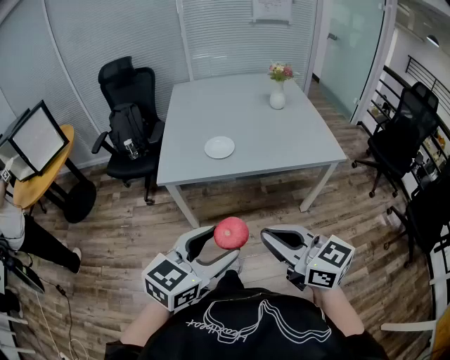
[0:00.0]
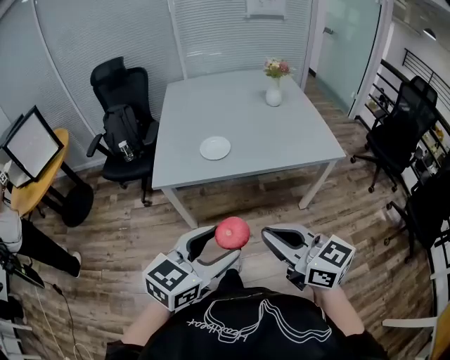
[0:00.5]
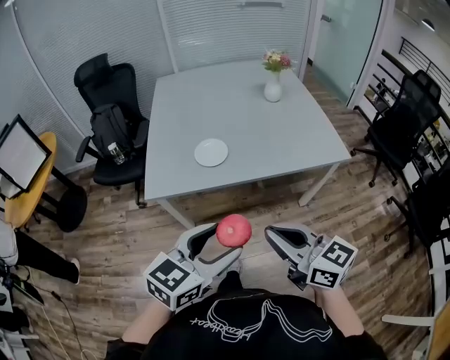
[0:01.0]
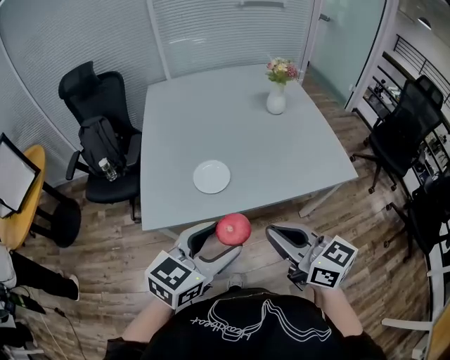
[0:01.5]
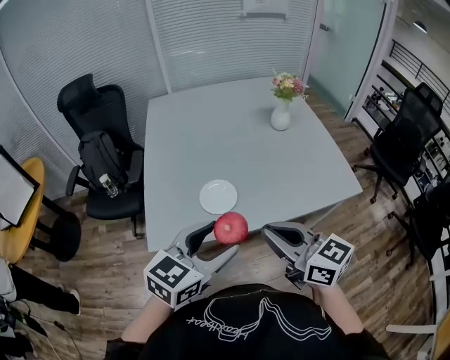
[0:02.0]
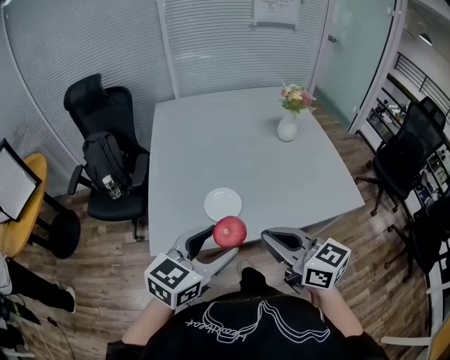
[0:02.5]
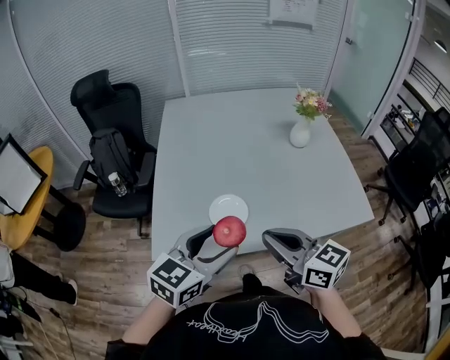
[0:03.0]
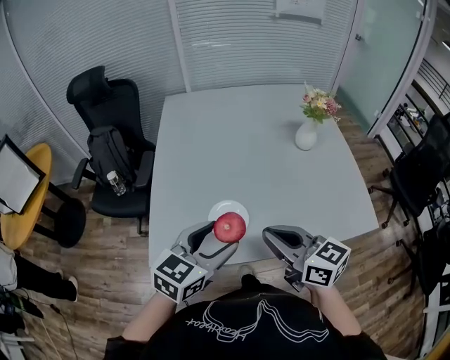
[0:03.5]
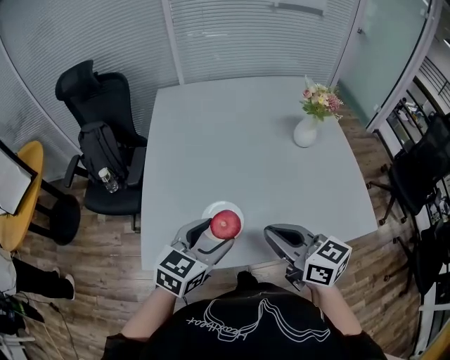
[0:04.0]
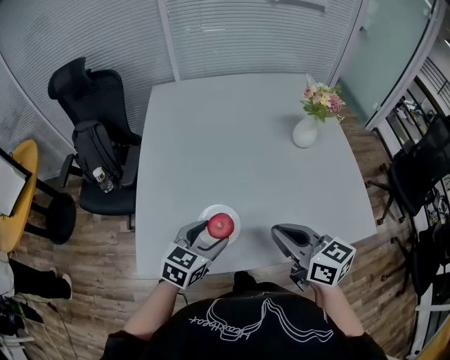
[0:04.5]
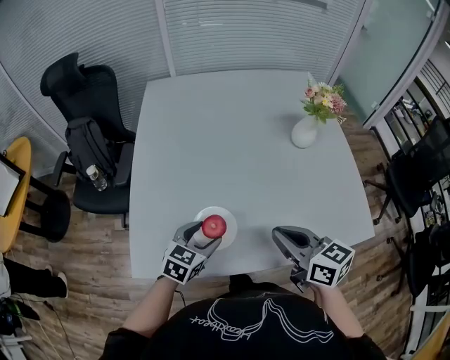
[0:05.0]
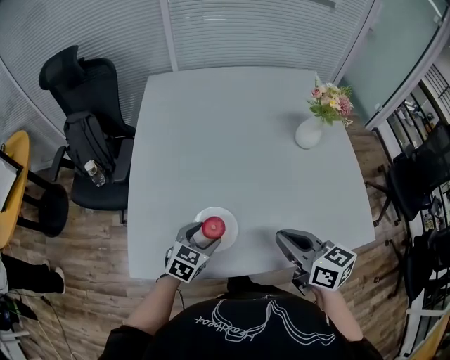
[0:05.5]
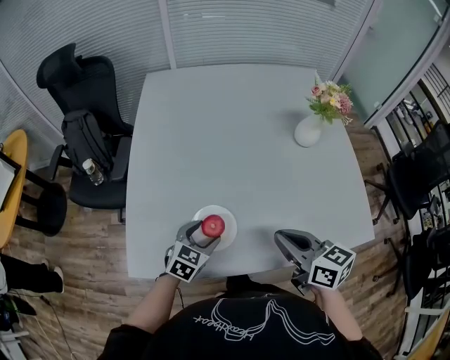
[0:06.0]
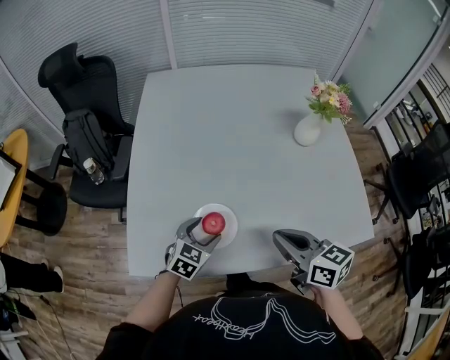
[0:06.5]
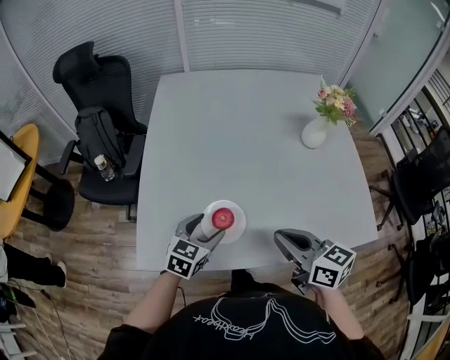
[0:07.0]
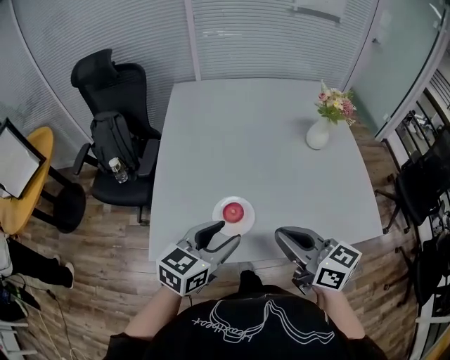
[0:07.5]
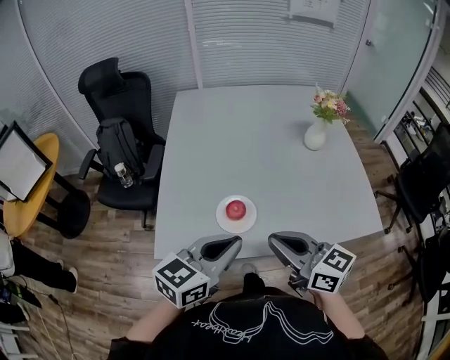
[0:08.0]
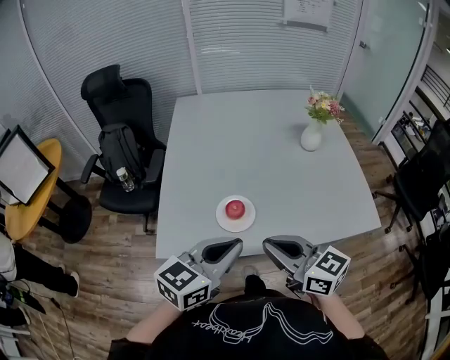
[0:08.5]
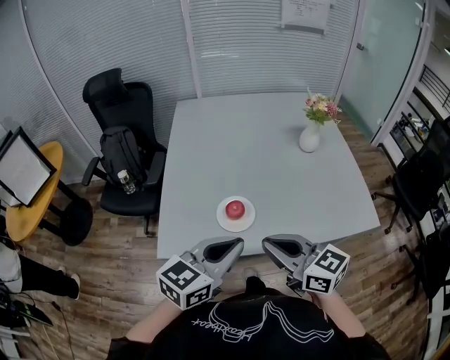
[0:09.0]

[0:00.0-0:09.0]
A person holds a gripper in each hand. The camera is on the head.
0:00.0 to 0:02.0: Both grippers travel together forward, approximately 35 cm.
0:02.0 to 0:04.5: The left gripper goes some 25 cm forward and downward. The right gripper travels forward by some 20 cm.
0:07.0 to 0:09.0: The left gripper travels upward and backward by approximately 25 cm, rotates roughly 20 degrees, and closes; the right gripper travels backward, upward and to the left by approximately 15 cm.

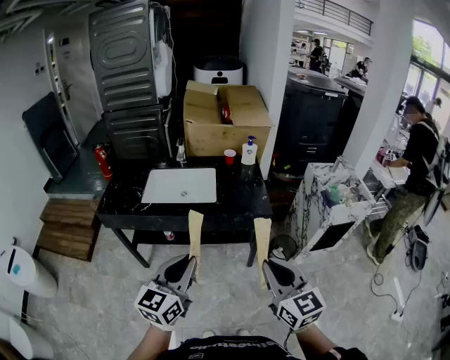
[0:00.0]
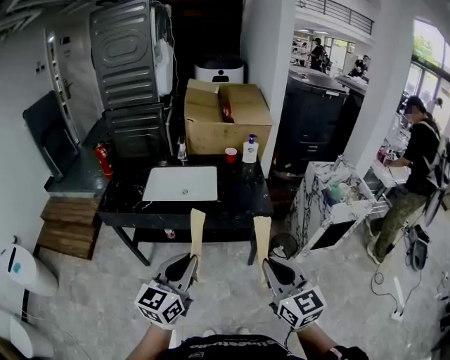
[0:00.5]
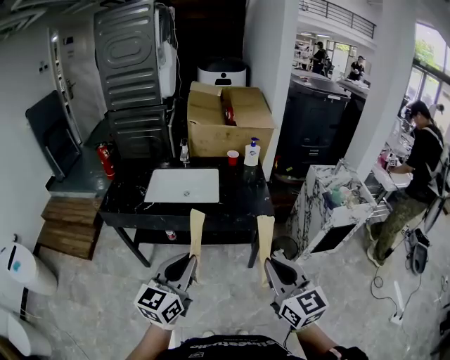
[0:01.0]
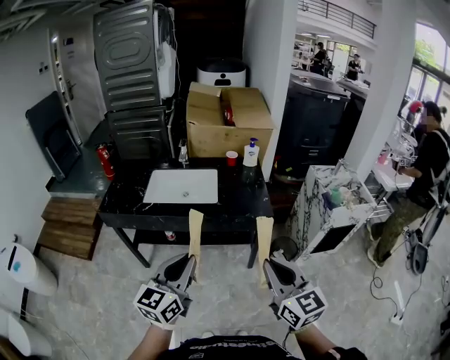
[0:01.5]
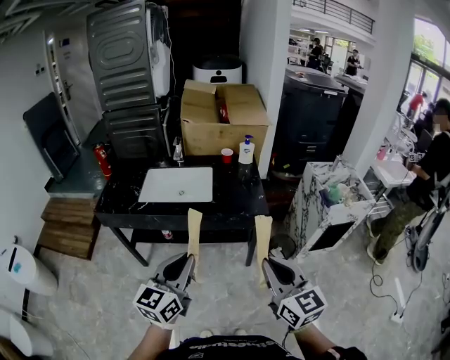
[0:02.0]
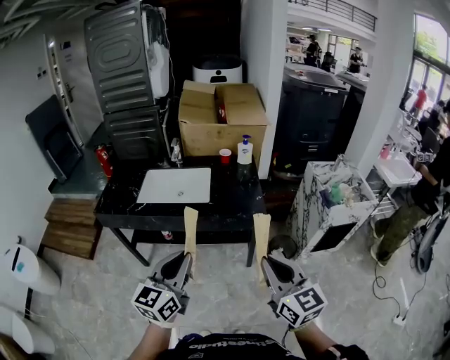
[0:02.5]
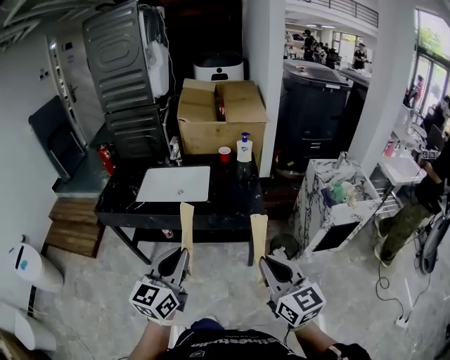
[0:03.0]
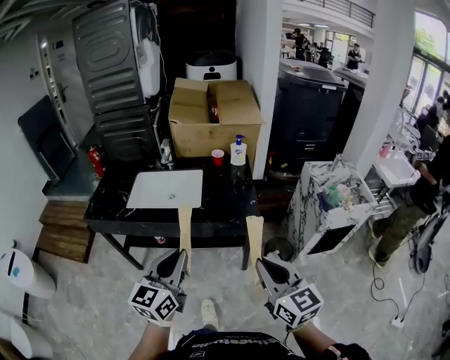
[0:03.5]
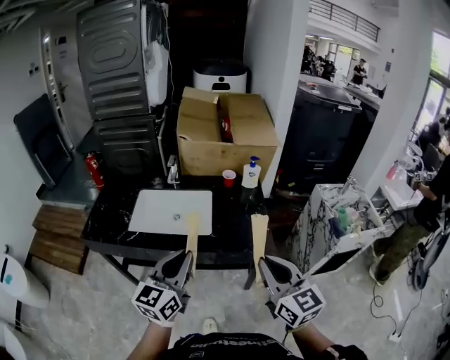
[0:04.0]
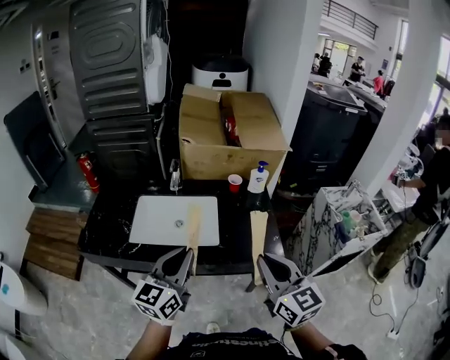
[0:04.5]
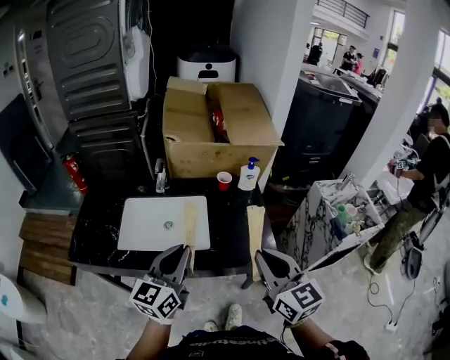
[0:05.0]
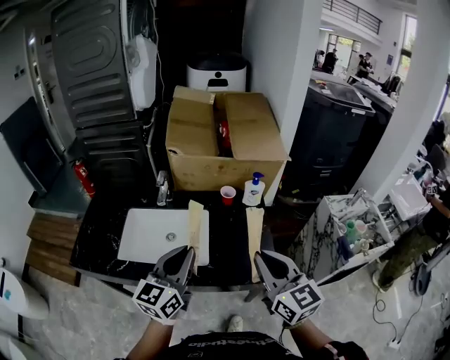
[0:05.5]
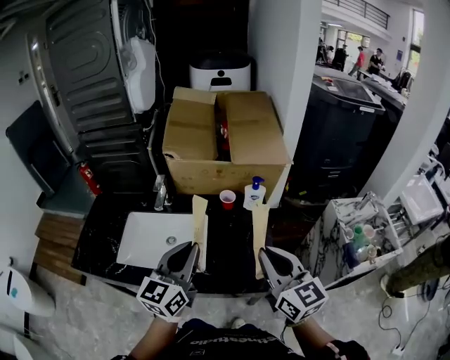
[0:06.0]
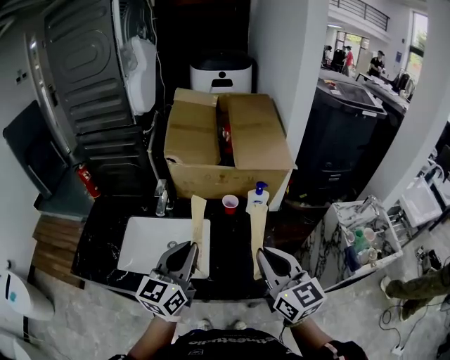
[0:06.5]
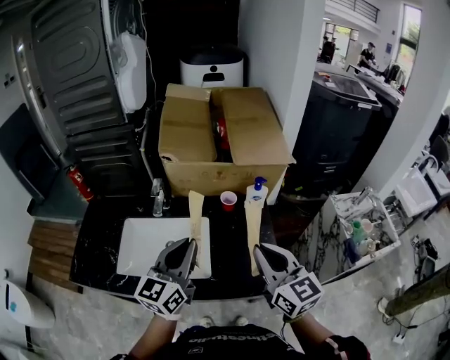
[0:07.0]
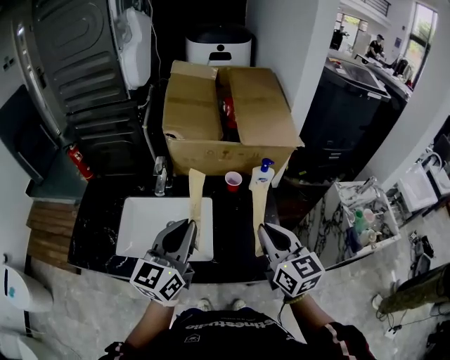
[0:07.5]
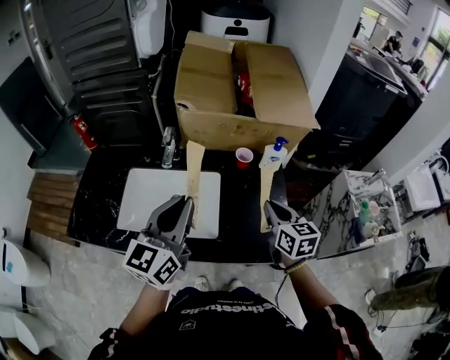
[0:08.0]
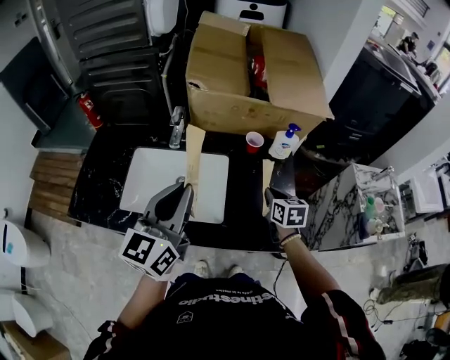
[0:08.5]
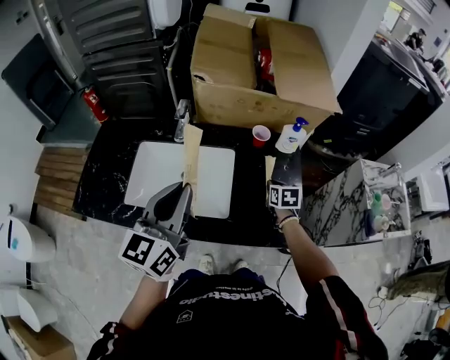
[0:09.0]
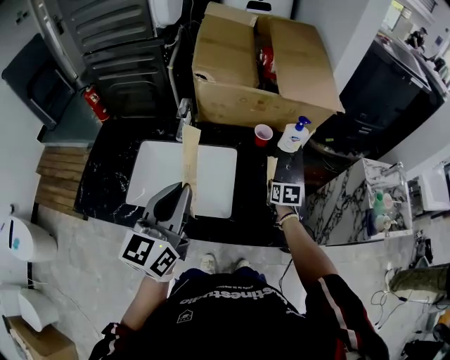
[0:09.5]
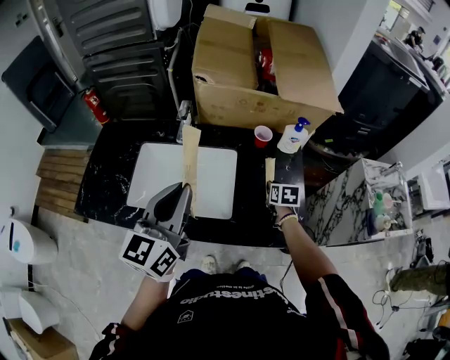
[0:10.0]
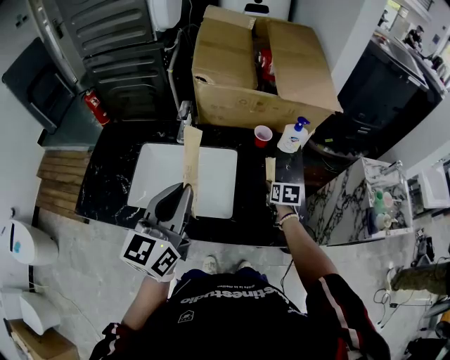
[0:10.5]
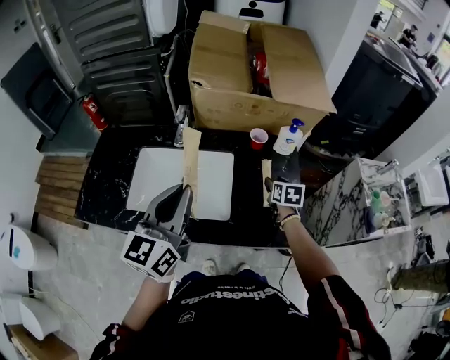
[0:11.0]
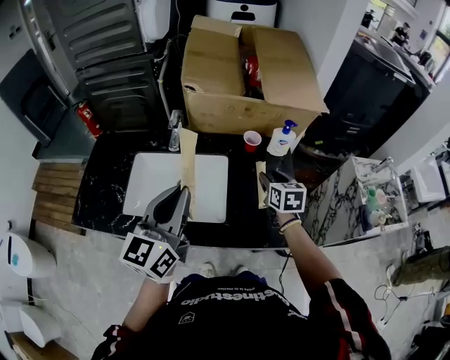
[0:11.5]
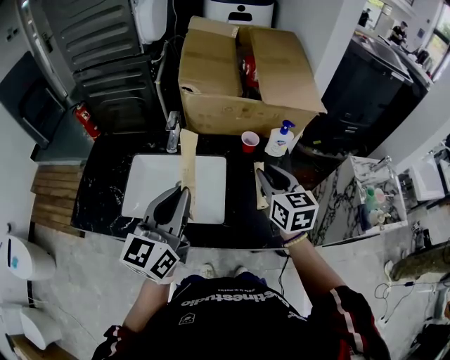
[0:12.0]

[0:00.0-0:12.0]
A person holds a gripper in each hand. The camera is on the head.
0:00.0 to 0:02.0: The grippers make only small movements.
0:02.0 to 0:04.0: Both grippers move forward, roughly 20 cm.
0:04.0 to 0:06.0: The grippers both shift forward by roughly 25 cm.
0:06.0 to 0:08.0: The right gripper heads downward and forward, covering about 20 cm, and changes its angle by roughly 20 degrees, while the left gripper is displaced to the left by some 10 cm.
0:08.0 to 0:10.0: The right gripper heads downward and forward, covering about 20 cm, and changes its angle by approximately 30 degrees.
0:10.0 to 0:12.0: The right gripper goes roughly 25 cm upward, and angles its fingers upward, by roughly 30 degrees.

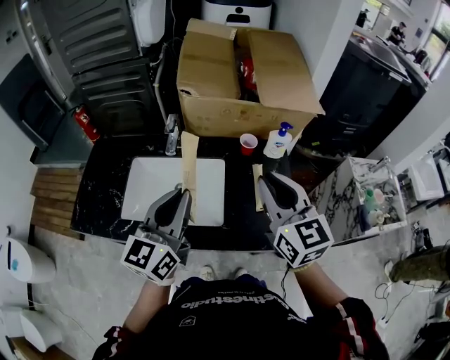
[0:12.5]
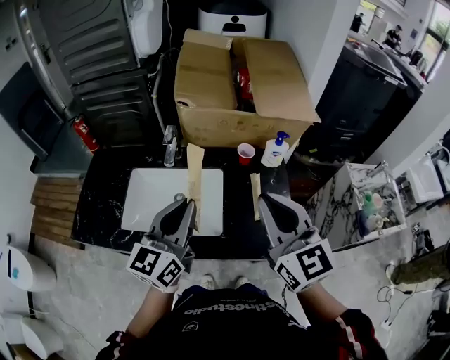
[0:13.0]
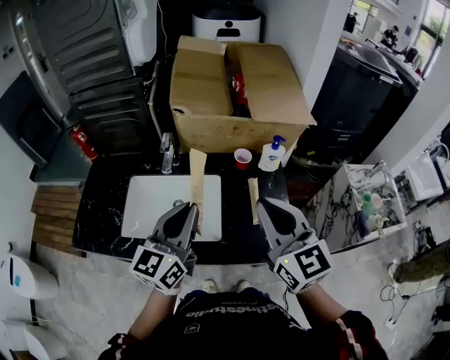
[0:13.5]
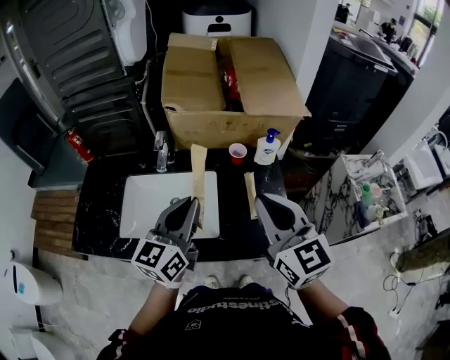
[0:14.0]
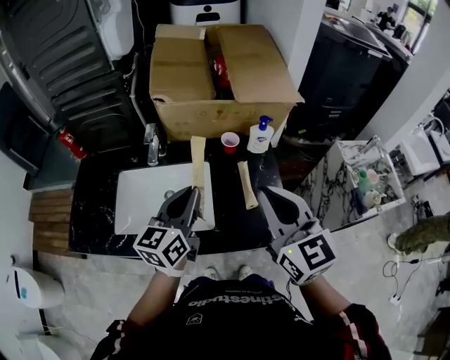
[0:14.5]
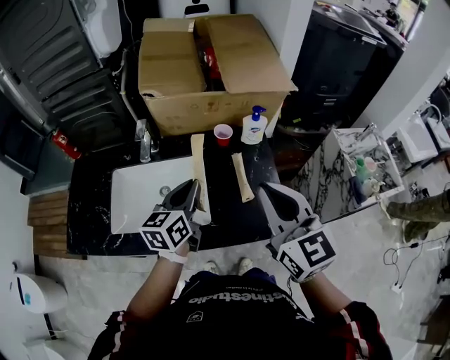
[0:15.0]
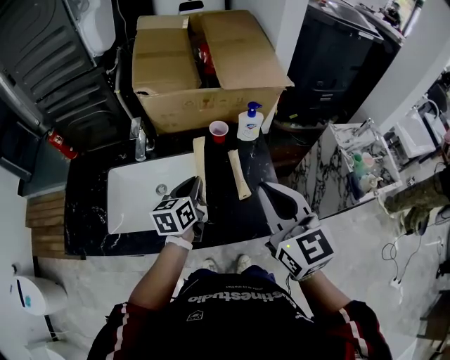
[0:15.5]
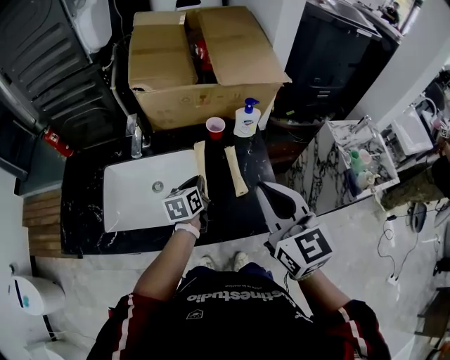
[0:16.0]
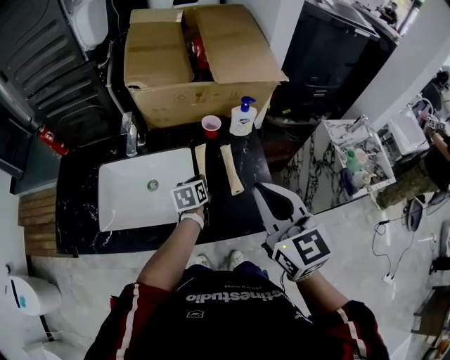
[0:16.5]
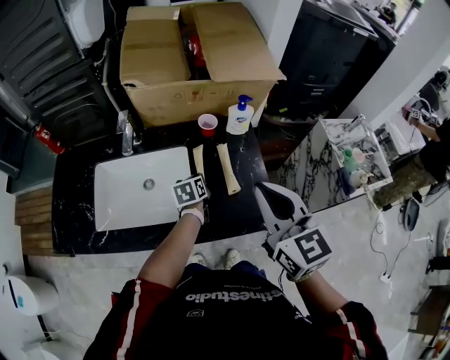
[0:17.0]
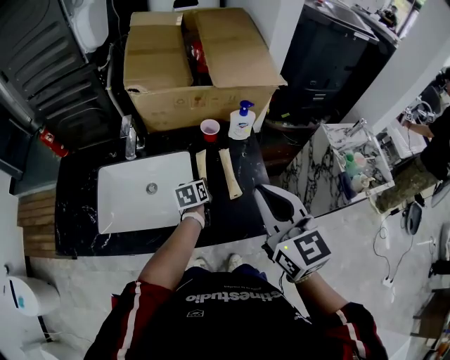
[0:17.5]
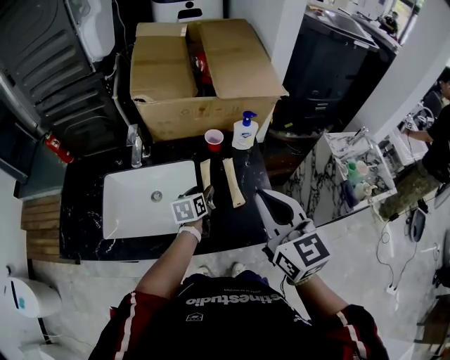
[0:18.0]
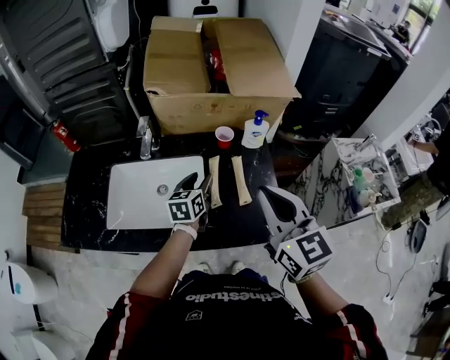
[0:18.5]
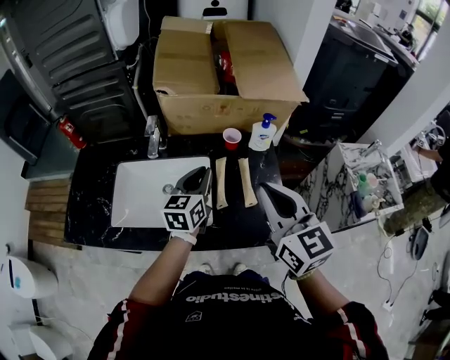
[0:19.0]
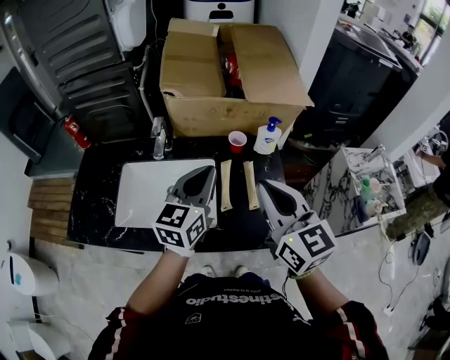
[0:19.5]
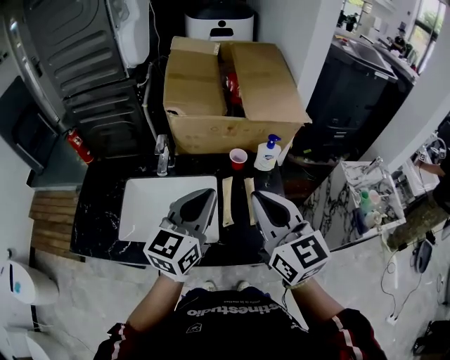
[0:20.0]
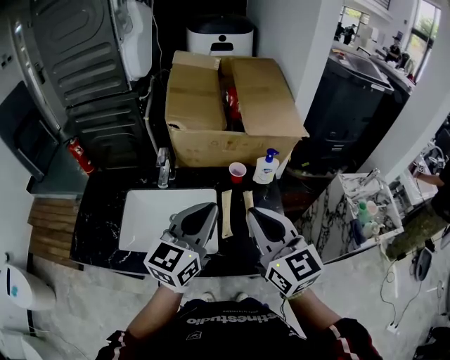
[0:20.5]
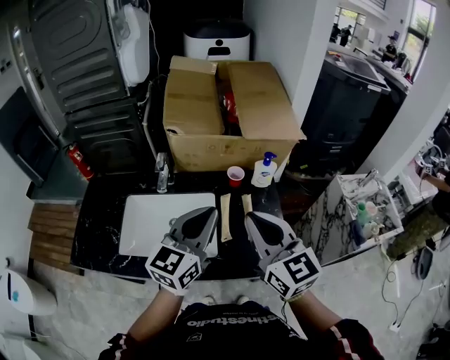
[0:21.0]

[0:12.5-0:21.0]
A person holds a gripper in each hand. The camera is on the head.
0:12.5 to 0:14.5: The right gripper ends up about 5 cm from where it was; the left gripper shifts about 10 cm to the right and downward.
0:14.5 to 0:16.5: The left gripper heads downward, covering approximately 25 cm, and angles its fingers downward, by about 30 degrees.
0:16.5 to 0:19.0: The left gripper heads upward, covering some 15 cm, changes its angle by about 30 degrees, and opens, then closes once more.
0:19.0 to 0:21.0: The left gripper heads upward and backward, covering about 15 cm, and changes its angle by some 20 degrees.
